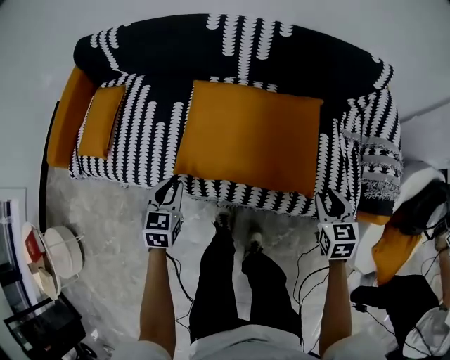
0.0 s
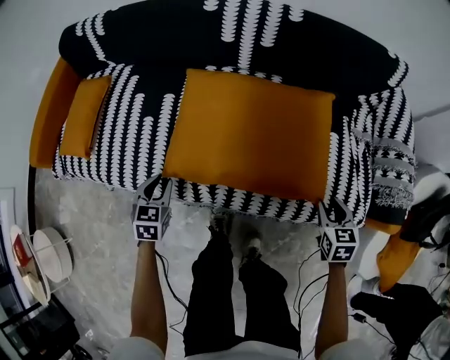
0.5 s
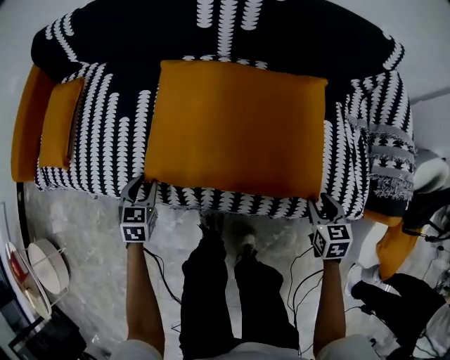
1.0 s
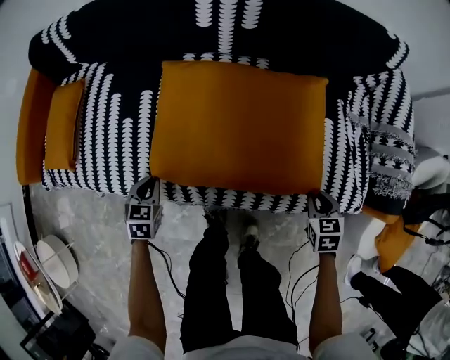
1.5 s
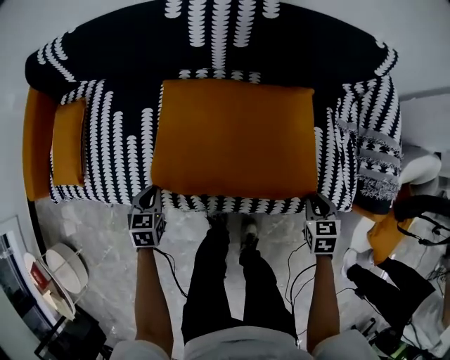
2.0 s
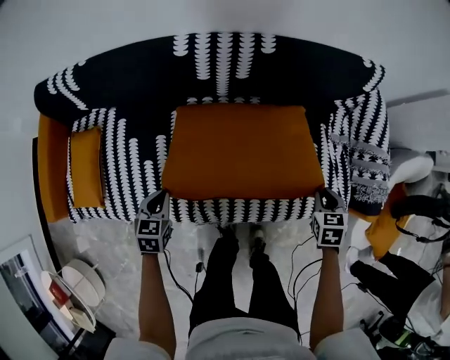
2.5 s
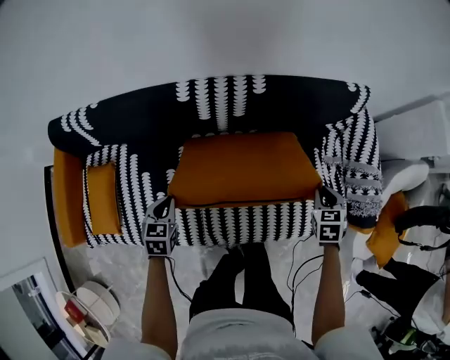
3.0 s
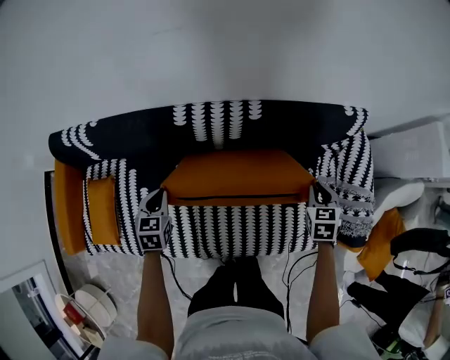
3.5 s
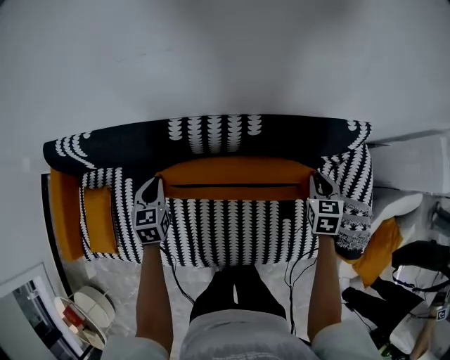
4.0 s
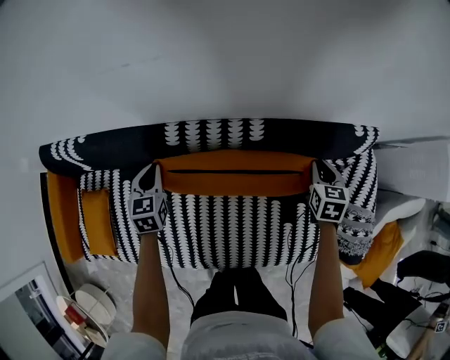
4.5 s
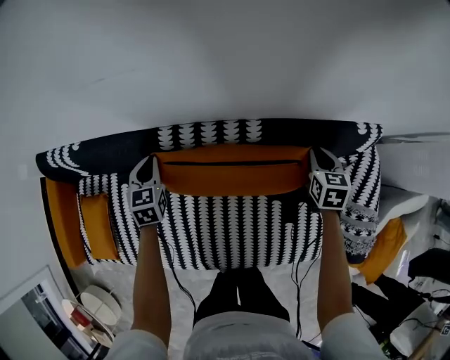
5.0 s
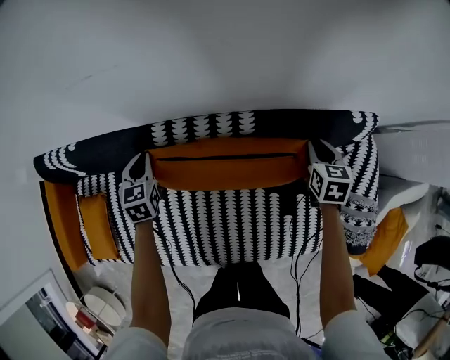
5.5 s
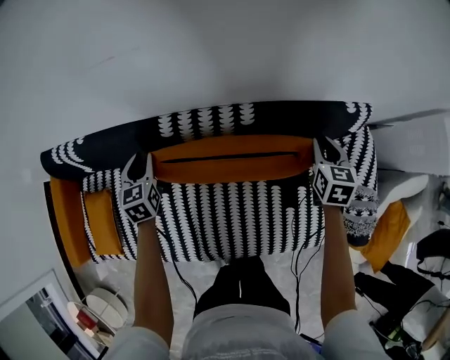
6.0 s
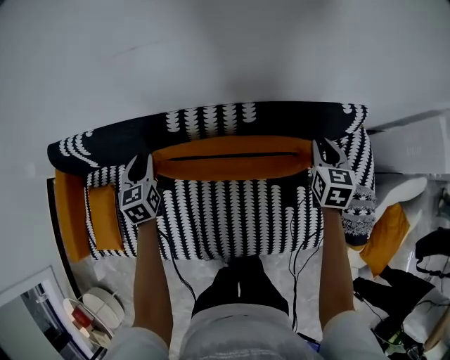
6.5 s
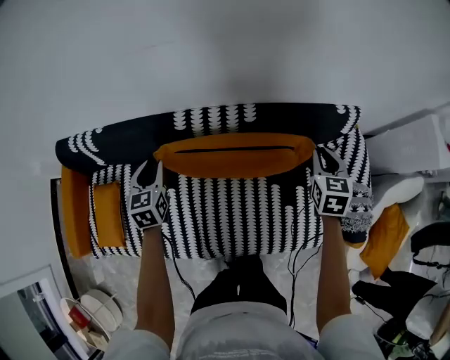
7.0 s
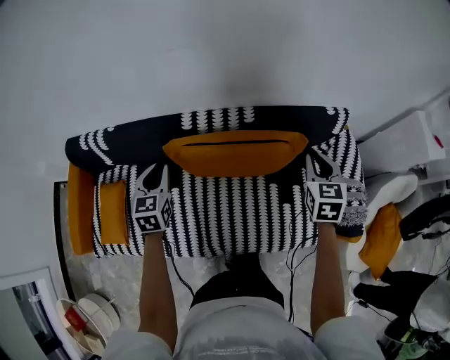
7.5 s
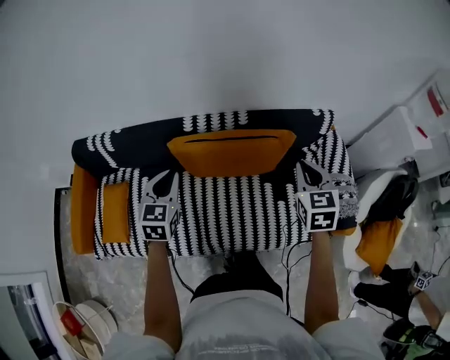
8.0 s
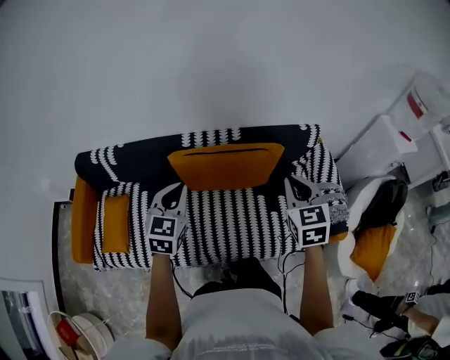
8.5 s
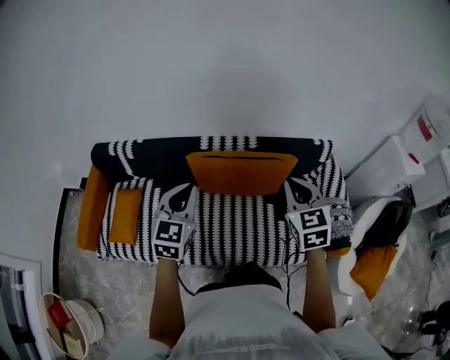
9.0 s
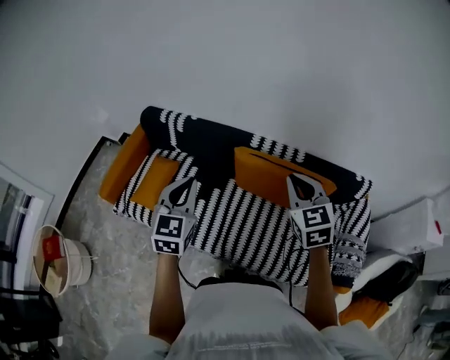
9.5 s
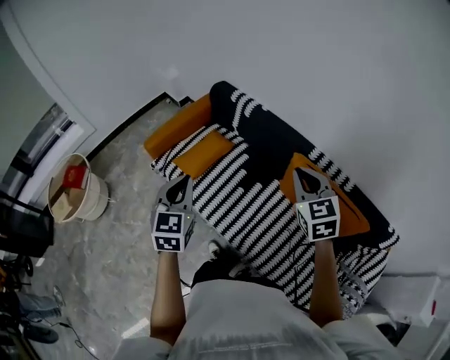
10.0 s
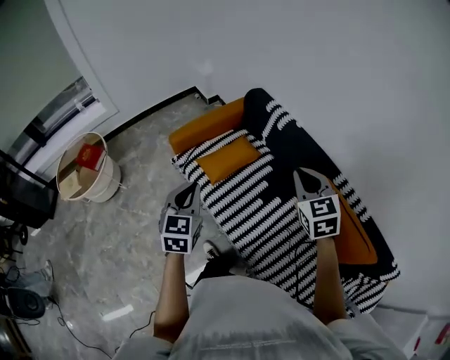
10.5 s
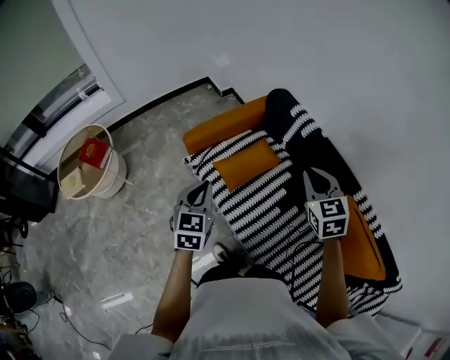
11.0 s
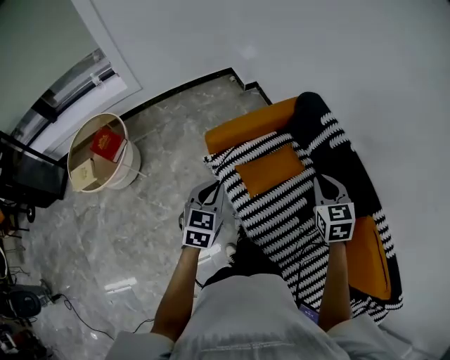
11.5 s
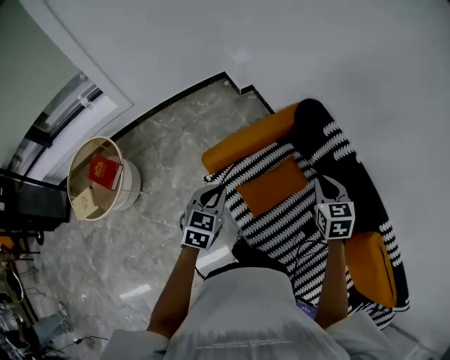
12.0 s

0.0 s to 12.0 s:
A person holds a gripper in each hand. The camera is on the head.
0.0 to 2.0 s: The left gripper moves downward, approximately 20 cm. The right gripper goes roughly 10 cm downward, and changes its angle by about 20 degrees.
2.0 to 4.0 s: Both grippers move forward and upward, roughly 40 cm.
4.0 to 6.0 s: Both grippers travel together forward, some 5 cm. The left gripper opens its fingers.
6.0 to 8.0 s: The two grippers go some 30 cm backward and upward. The left gripper turns by about 20 degrees, and closes up.
8.0 to 10.0 s: The left gripper shifts by some 40 cm, and turns by some 50 degrees. Meanwhile the right gripper shifts by some 40 cm, and changes its angle by some 60 degrees.
10.0 to 12.0 s: The two grippers go approximately 50 cm forward, to the left and downward.

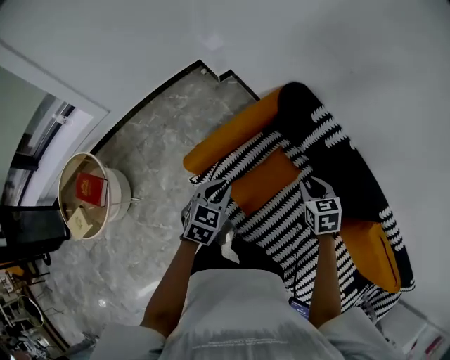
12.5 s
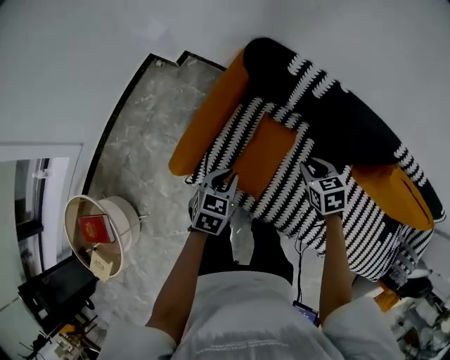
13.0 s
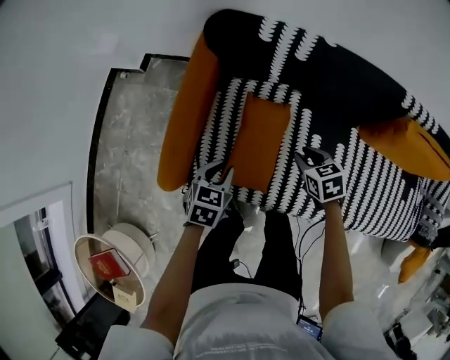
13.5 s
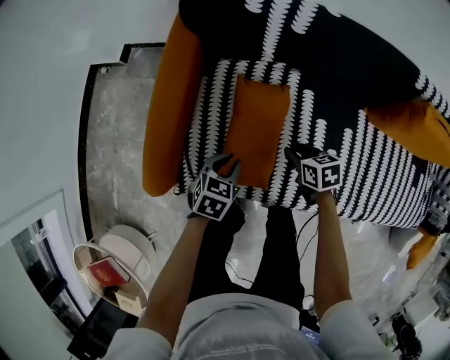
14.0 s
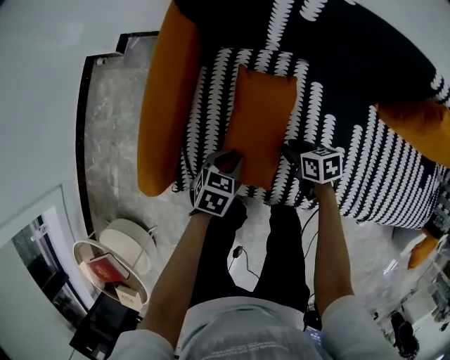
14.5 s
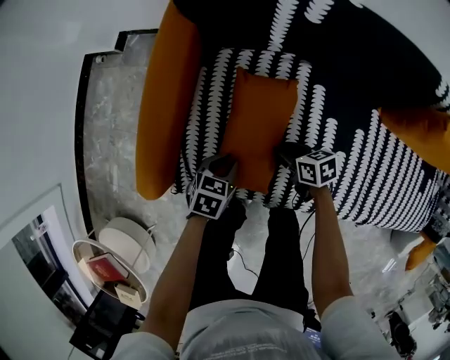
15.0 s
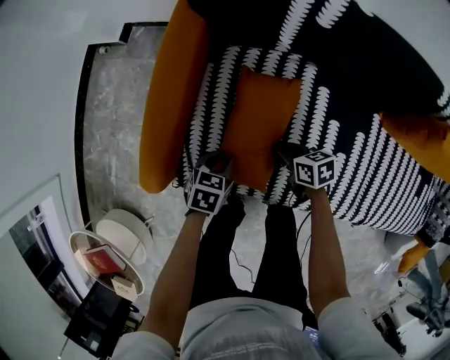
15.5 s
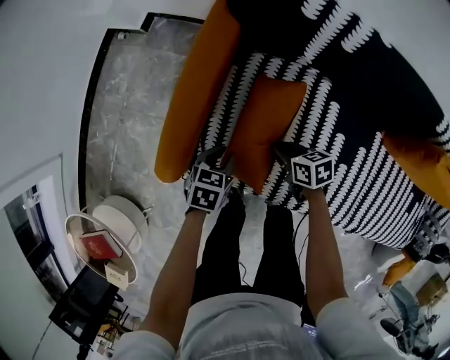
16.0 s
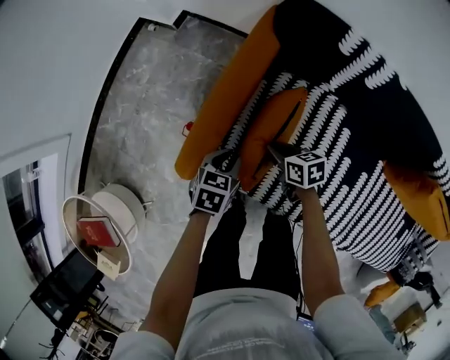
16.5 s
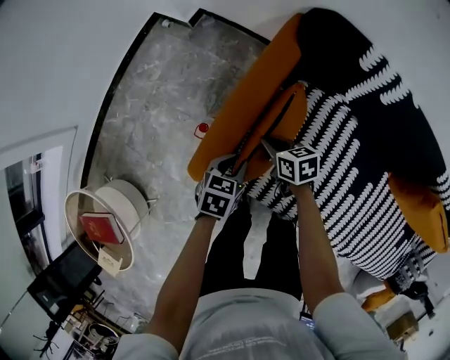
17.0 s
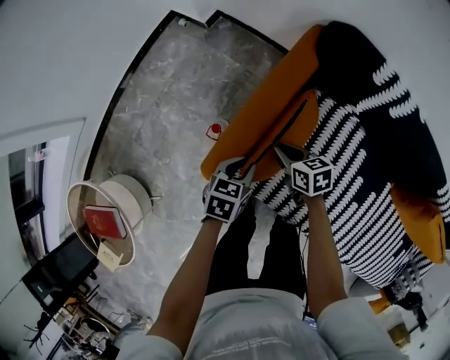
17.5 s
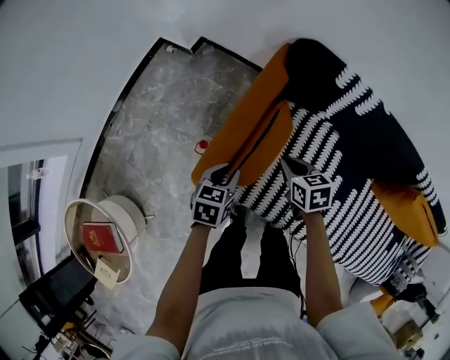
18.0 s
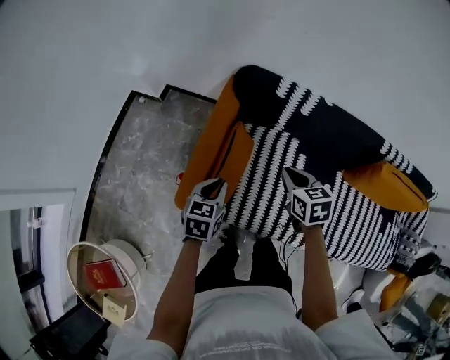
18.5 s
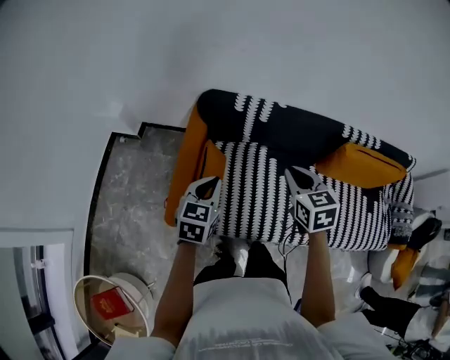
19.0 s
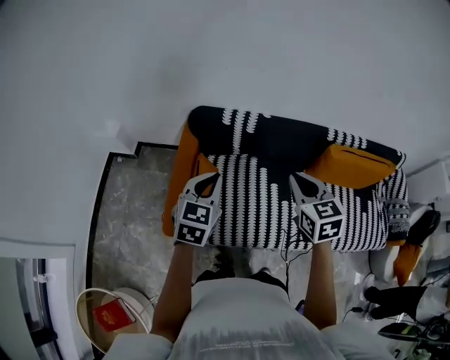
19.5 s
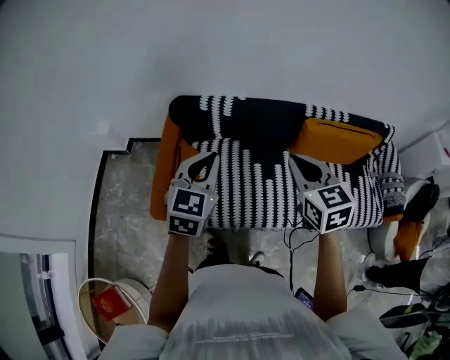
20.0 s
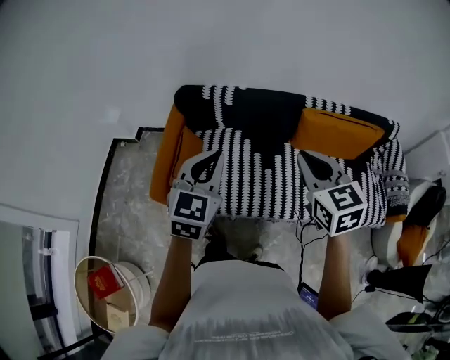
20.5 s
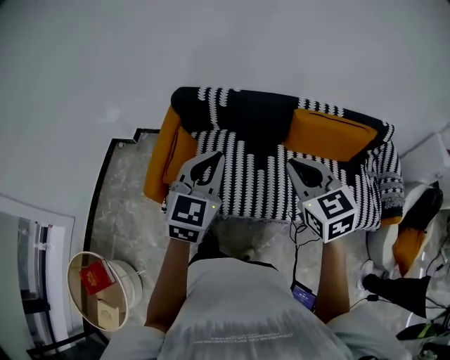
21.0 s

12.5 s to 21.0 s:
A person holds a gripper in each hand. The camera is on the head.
12.5 to 14.5 s: The grippers both shift downward by roughly 35 cm. The left gripper turns by approximately 40 degrees. The right gripper twists approximately 50 degrees clockwise, seen from behind.
14.5 to 16.5 s: The left gripper moves to the left, upward and forward, about 15 cm, and swivels some 20 degrees, while the right gripper is displaced to the left, forward and upward by about 20 cm.
16.5 to 19.0 s: The grippers both shift upward by roughly 40 cm. The left gripper rotates roughly 30 degrees, and closes its fingers. The right gripper swivels about 50 degrees.
19.0 to 21.0 s: The left gripper heads to the right, upward and backward, covering roughly 40 cm, and rotates roughly 30 degrees; the right gripper is displaced backward, to the right and upward by roughly 40 cm.

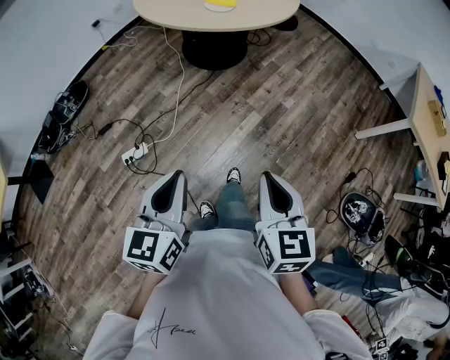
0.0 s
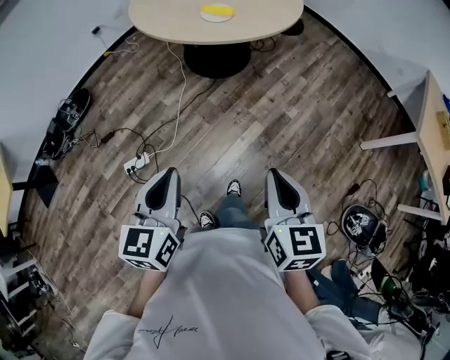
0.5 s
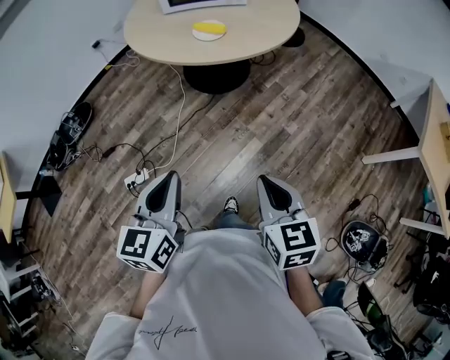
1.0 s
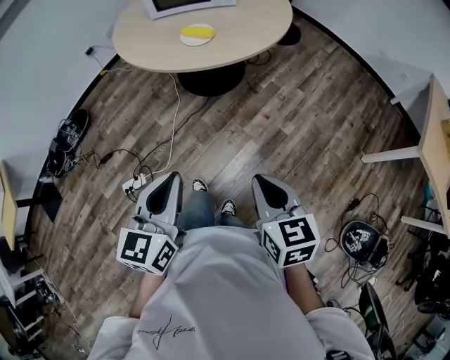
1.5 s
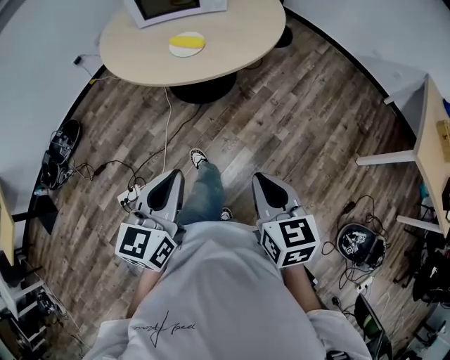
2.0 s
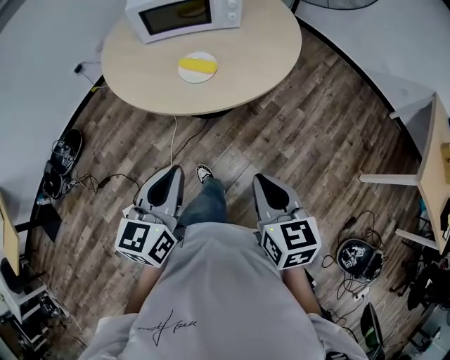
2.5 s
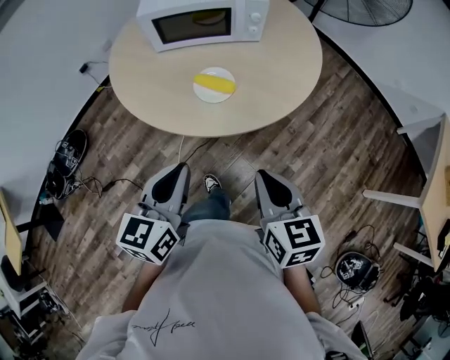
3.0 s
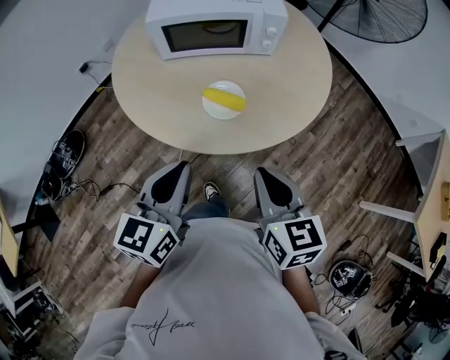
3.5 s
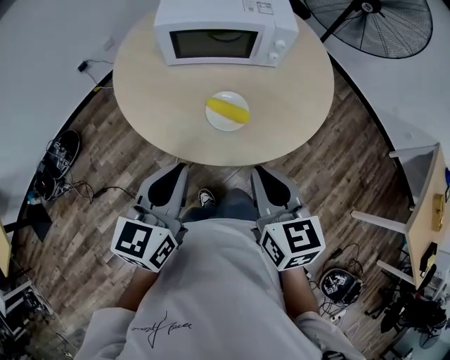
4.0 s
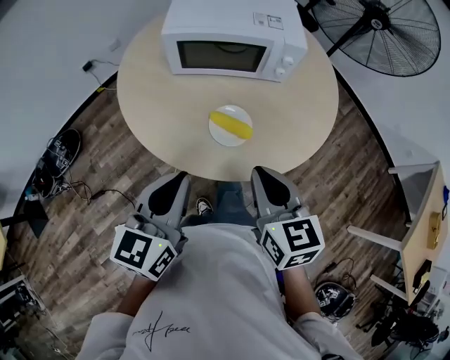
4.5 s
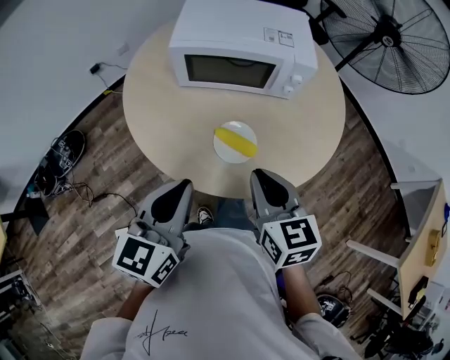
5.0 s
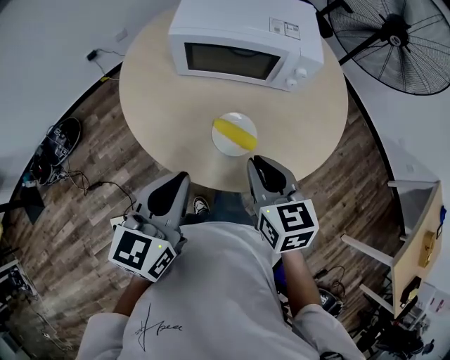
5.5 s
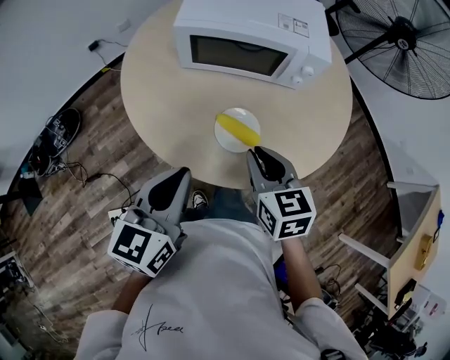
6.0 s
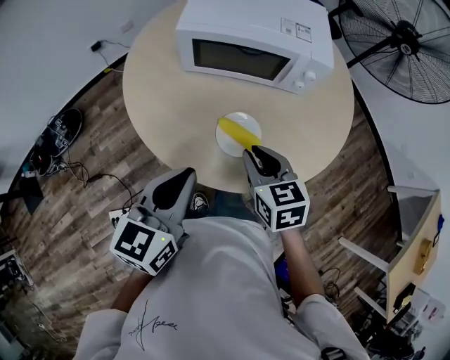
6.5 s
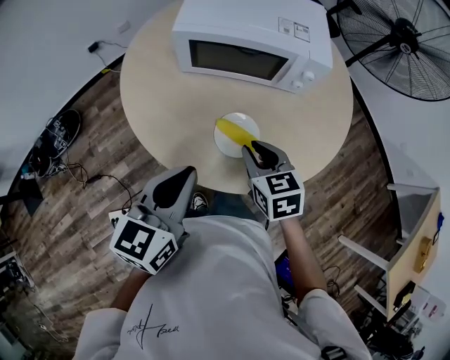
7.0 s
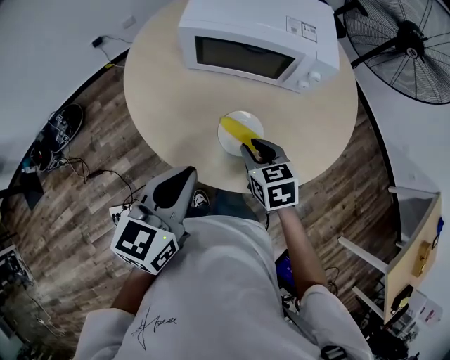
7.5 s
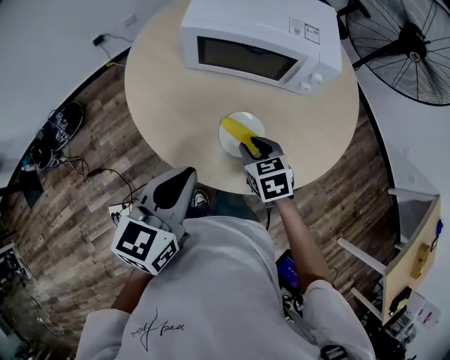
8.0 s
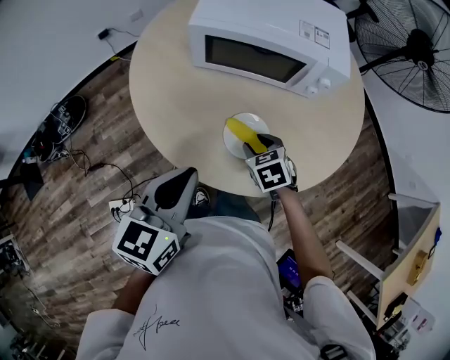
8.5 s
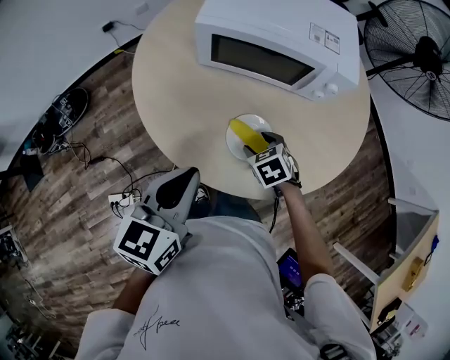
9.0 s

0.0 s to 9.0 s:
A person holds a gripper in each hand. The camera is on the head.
0.0 to 2.0 s: The grippers both shift forward and to the right by roughly 30 cm.
2.0 to 4.5 s: Both grippers are carried forward, approximately 40 cm.
4.5 to 7.0 s: The right gripper shifts about 15 cm forward and downward. The left gripper heads forward, covering roughly 5 cm.
7.0 to 9.0 s: The right gripper goes some 15 cm downward, swivels about 30 degrees, and opens up.
